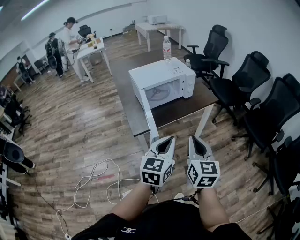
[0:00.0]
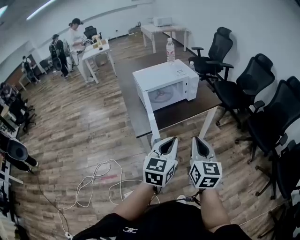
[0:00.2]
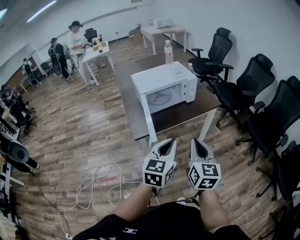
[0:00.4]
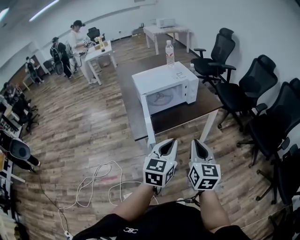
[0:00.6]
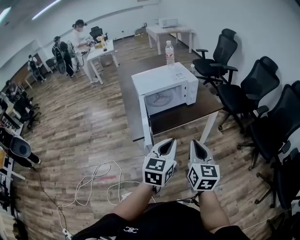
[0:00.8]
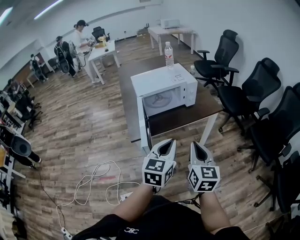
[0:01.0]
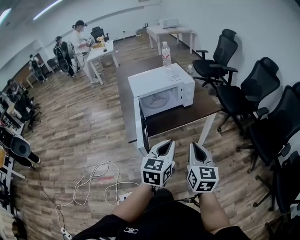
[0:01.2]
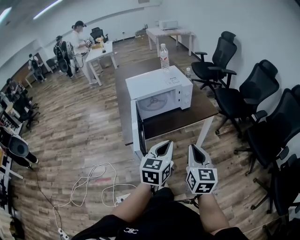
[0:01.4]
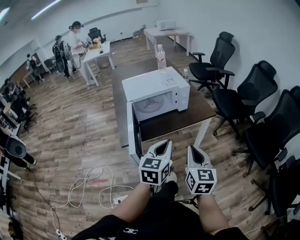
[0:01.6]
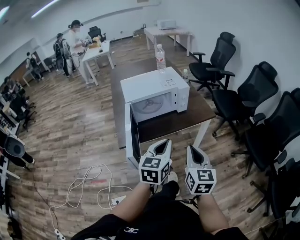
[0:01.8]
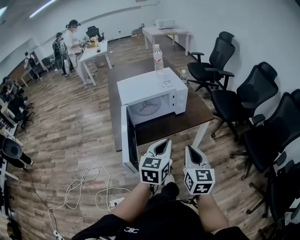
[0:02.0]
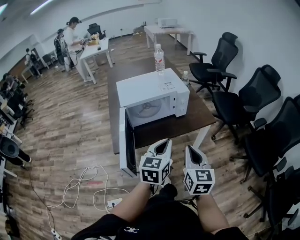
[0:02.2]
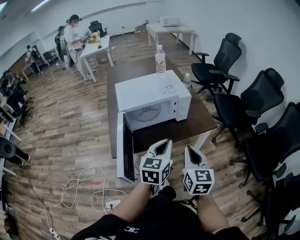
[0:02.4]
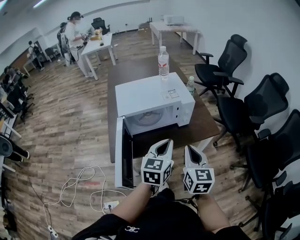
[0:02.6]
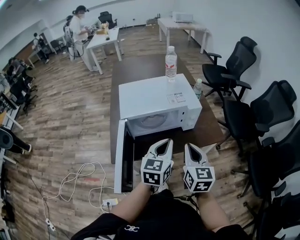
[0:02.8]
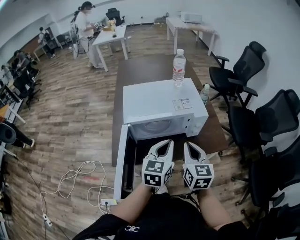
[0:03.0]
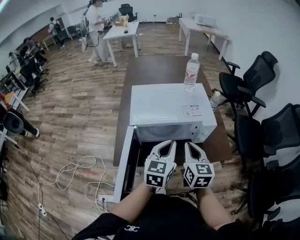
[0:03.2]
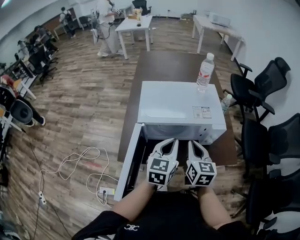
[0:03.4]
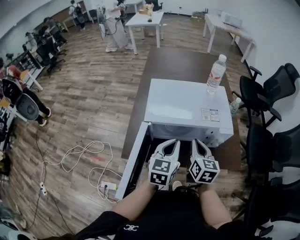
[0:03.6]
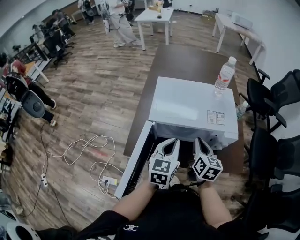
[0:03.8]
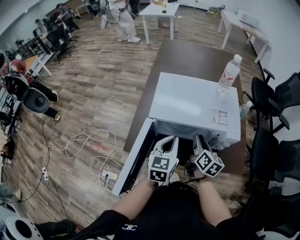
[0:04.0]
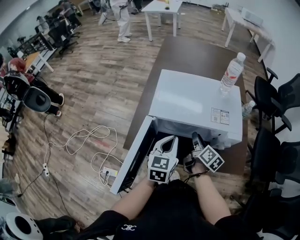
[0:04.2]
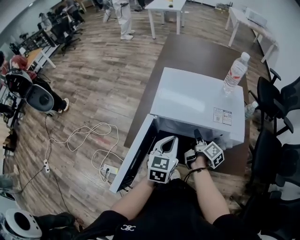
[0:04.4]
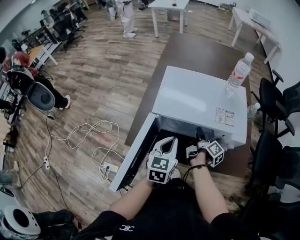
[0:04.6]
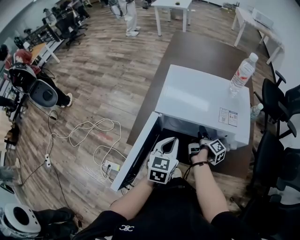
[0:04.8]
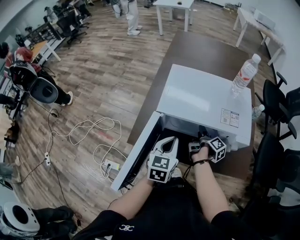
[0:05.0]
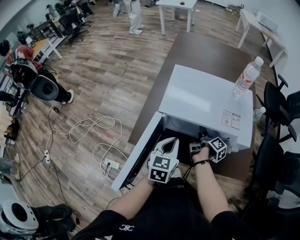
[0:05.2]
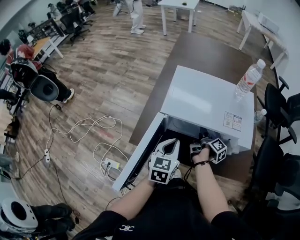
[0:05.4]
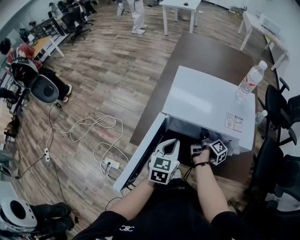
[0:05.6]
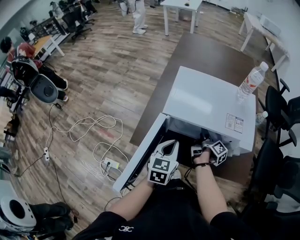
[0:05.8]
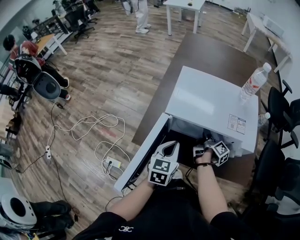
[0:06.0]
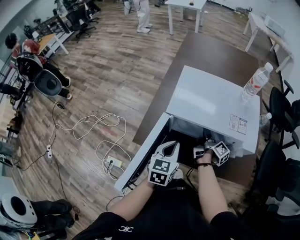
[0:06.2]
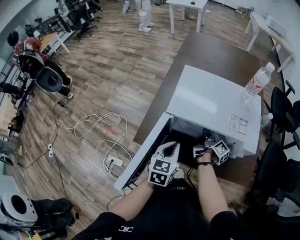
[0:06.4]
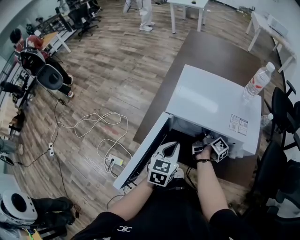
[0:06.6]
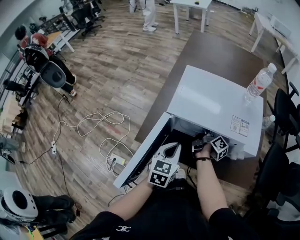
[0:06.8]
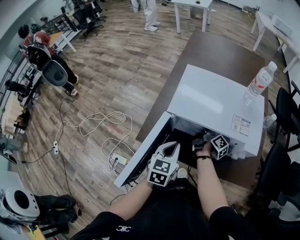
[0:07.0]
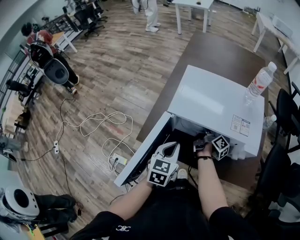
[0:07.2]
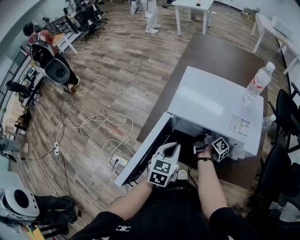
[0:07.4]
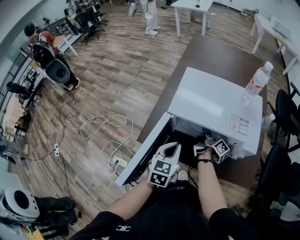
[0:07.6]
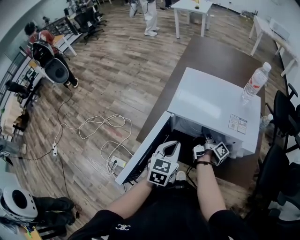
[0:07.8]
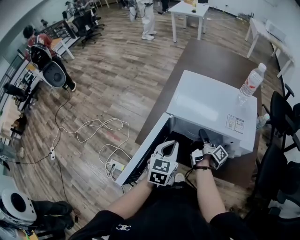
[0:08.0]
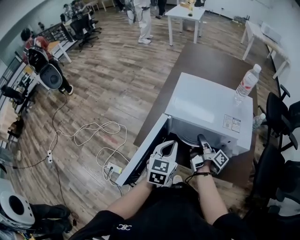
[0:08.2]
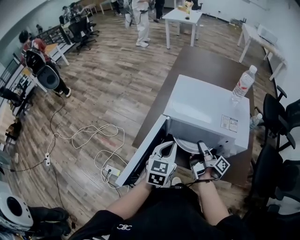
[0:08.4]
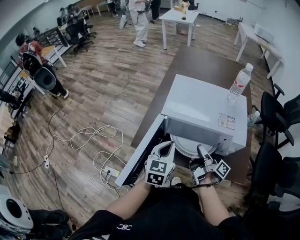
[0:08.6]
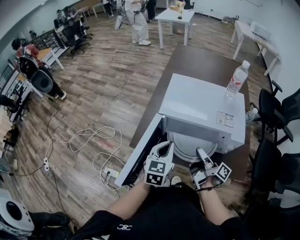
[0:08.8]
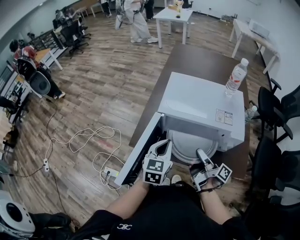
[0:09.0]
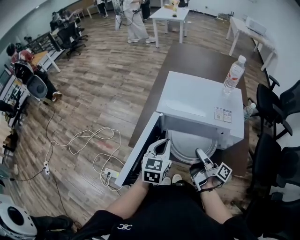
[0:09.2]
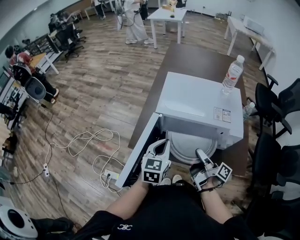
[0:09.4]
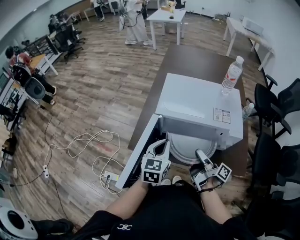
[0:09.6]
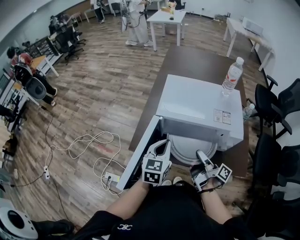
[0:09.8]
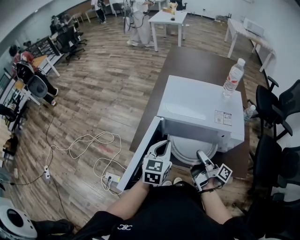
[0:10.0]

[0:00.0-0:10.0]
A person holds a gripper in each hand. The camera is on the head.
0:00.0 to 0:01.4: Both grippers move to the right and forward, some 10 cm.
0:01.4 to 0:02.8: Both grippers travel together forward, some 25 cm.
0:02.8 to 0:04.2: The left gripper shifts roughly 15 cm forward, to the left and downward, and rotates some 20 degrees. The right gripper goes roughly 25 cm forward and downward, rolls clockwise, seen from behind, by about 40 degrees, and opens.
0:04.2 to 0:05.8: The left gripper changes place by some 5 cm. The right gripper moves downward and forward, some 10 cm, turns by about 30 degrees, and opens.
0:05.8 to 0:07.2: The right gripper closes up.
0:07.2 to 0:08.6: The right gripper is displaced backward and upward by about 15 cm. The left gripper changes place by about 5 cm.
0:08.6 to 0:10.0: The grippers move only a little.

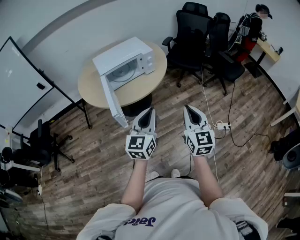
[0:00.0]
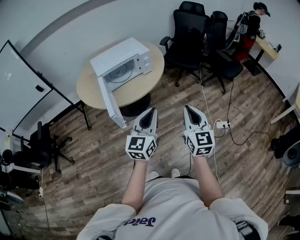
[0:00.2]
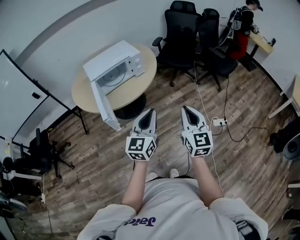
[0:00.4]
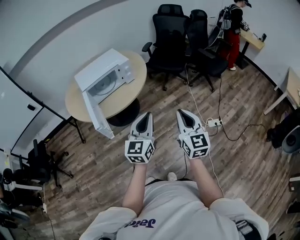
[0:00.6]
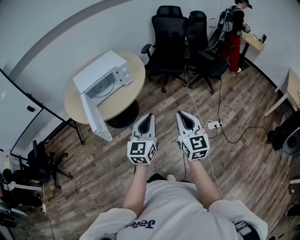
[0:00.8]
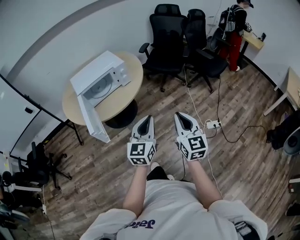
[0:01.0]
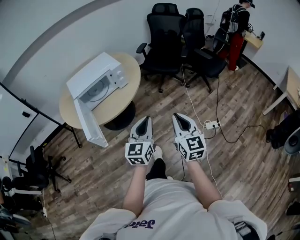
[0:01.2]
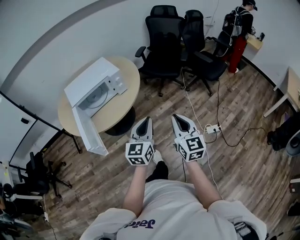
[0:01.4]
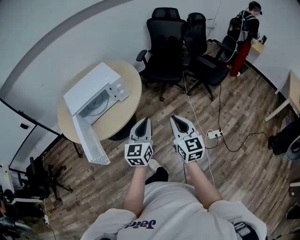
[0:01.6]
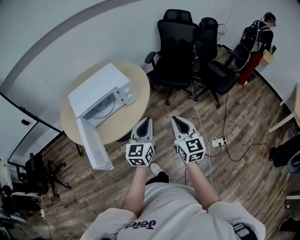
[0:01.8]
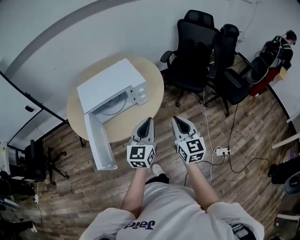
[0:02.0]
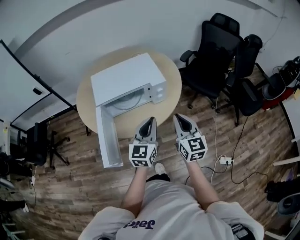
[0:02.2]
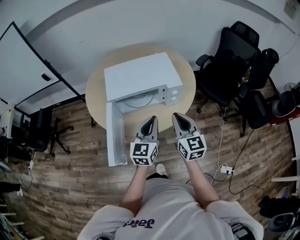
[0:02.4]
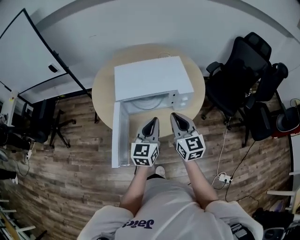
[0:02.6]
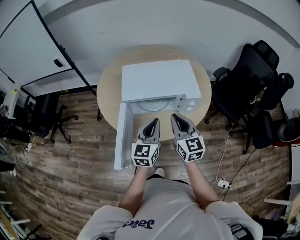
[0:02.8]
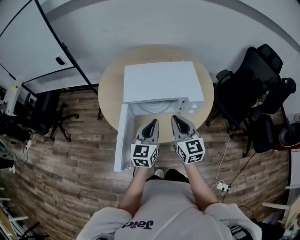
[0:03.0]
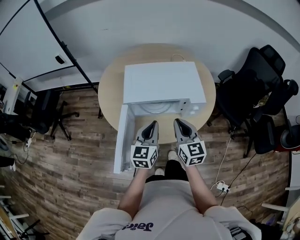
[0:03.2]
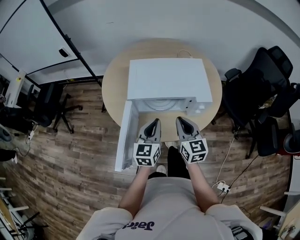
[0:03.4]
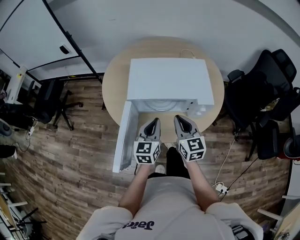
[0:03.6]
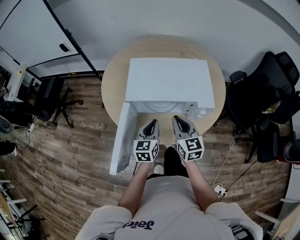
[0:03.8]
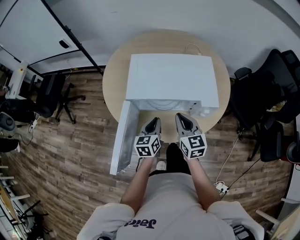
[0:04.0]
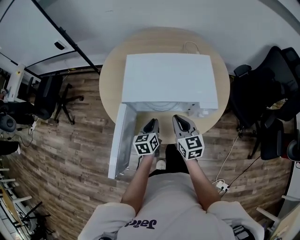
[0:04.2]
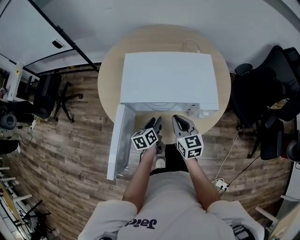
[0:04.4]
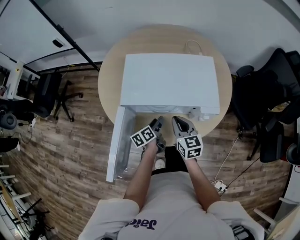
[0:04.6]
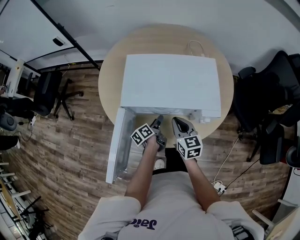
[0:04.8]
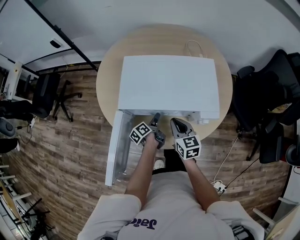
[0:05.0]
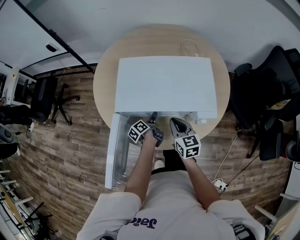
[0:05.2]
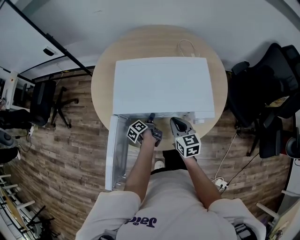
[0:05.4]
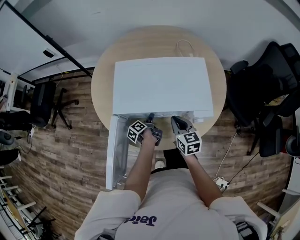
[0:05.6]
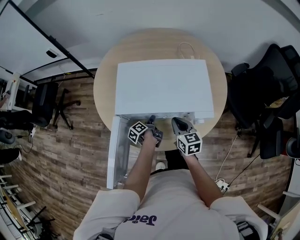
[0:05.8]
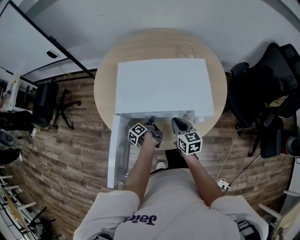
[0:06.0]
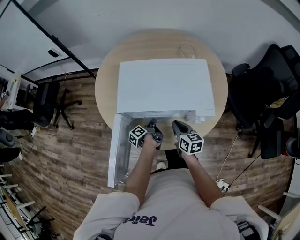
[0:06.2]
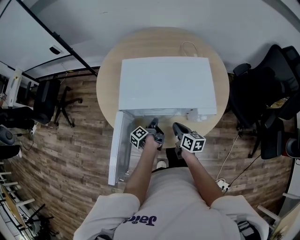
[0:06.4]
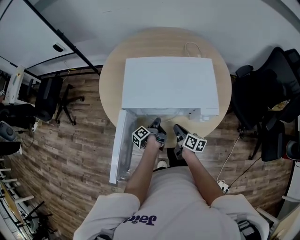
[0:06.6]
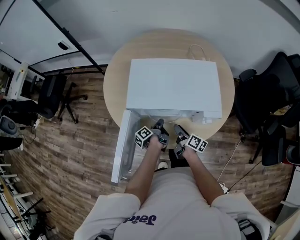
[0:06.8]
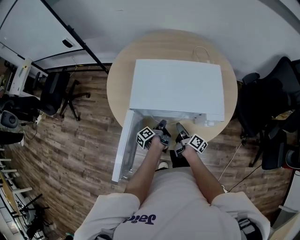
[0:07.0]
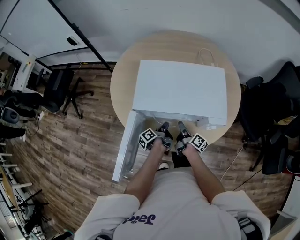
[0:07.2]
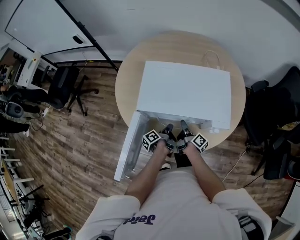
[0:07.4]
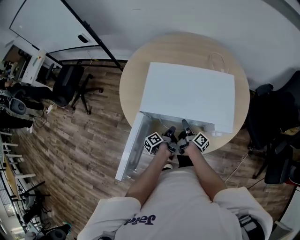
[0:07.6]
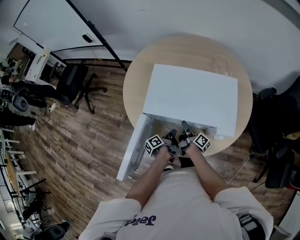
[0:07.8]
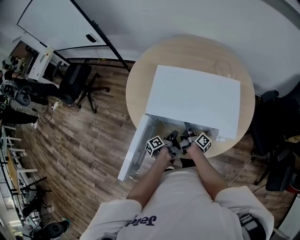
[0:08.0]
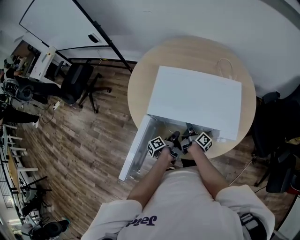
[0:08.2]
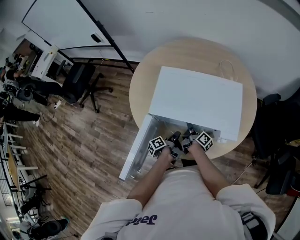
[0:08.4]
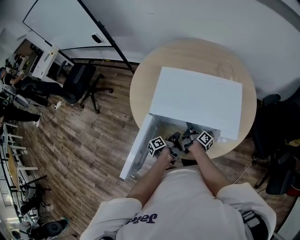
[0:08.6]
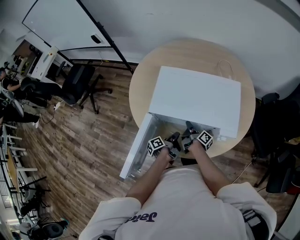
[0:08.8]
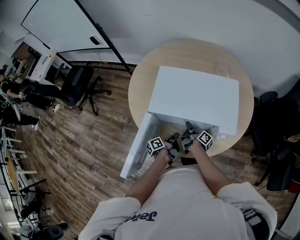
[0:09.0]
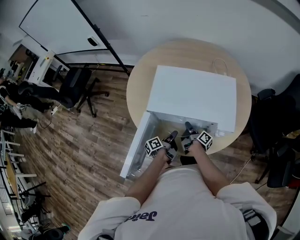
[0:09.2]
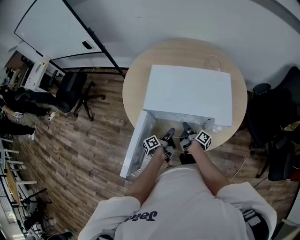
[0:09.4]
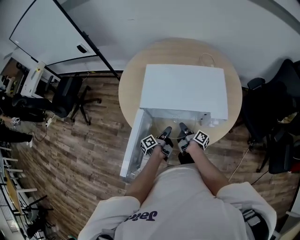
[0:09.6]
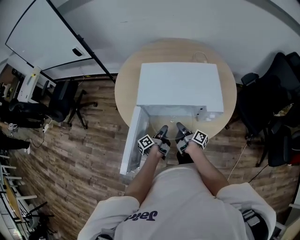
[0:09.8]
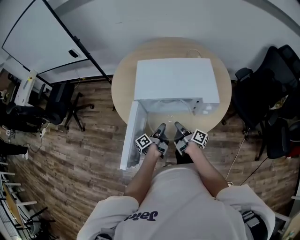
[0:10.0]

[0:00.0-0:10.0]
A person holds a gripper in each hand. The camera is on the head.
0:00.0 to 0:01.4: The right gripper moves roughly 15 cm.
0:01.4 to 0:02.8: The right gripper changes place by about 50 cm, and turns by some 40 degrees.
0:02.8 to 0:04.2: The right gripper is displaced downward by some 10 cm.
0:04.2 to 0:05.8: The right gripper shifts about 5 cm downward.
0:05.8 to 0:07.2: The right gripper moves downward, about 10 cm, rolls clockwise, seen from behind, by about 60 degrees, and opens up.
0:07.2 to 0:08.6: The right gripper shifts by about 5 cm, and closes up.
0:08.6 to 0:10.0: The right gripper ends up about 15 cm from where it was.

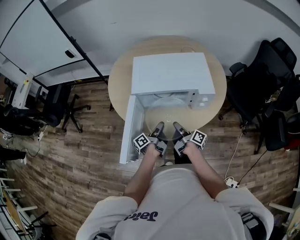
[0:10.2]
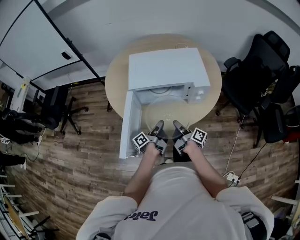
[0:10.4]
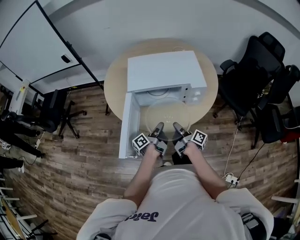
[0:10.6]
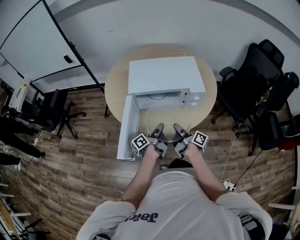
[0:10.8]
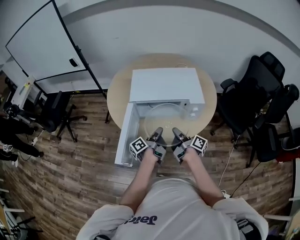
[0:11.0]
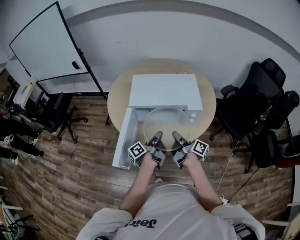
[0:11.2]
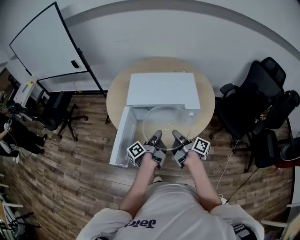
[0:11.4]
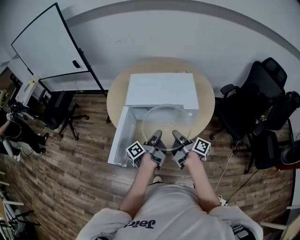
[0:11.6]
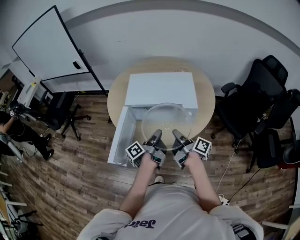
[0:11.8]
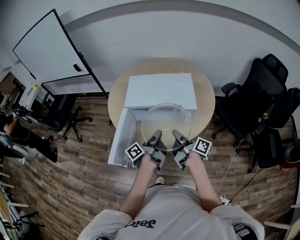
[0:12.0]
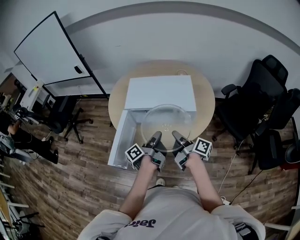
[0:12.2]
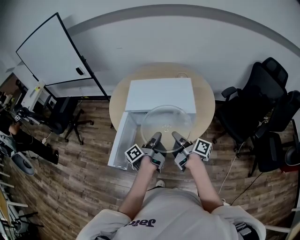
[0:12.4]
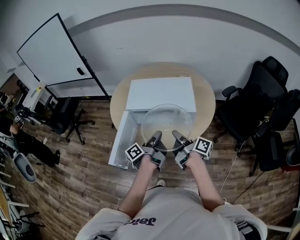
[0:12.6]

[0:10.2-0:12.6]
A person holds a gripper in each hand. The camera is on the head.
0:10.2 to 0:11.4: The right gripper travels upward by approximately 15 cm.
0:11.4 to 0:12.6: The right gripper moves upward, about 5 cm.

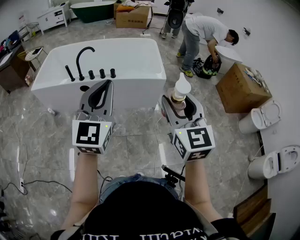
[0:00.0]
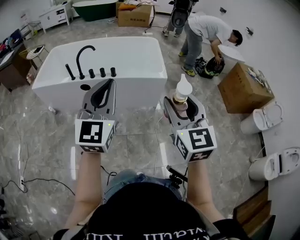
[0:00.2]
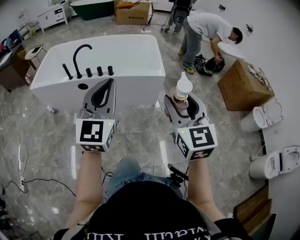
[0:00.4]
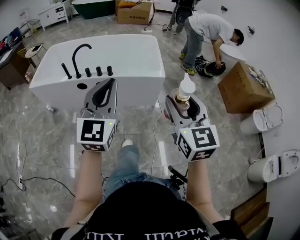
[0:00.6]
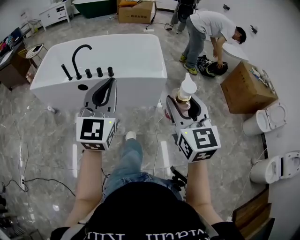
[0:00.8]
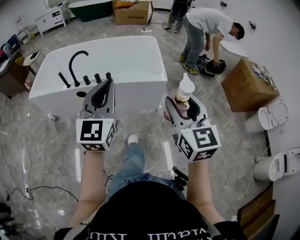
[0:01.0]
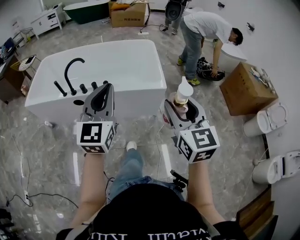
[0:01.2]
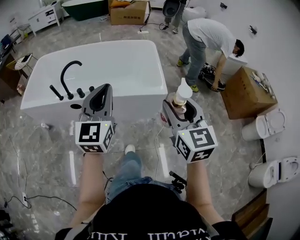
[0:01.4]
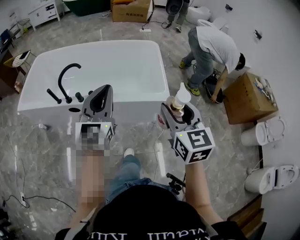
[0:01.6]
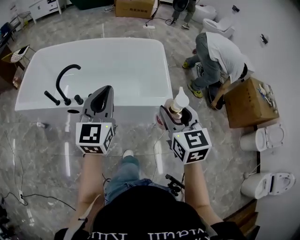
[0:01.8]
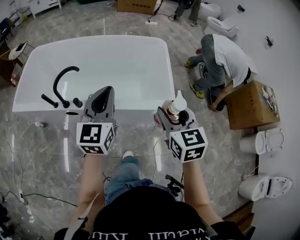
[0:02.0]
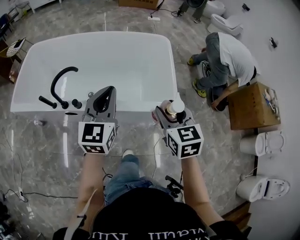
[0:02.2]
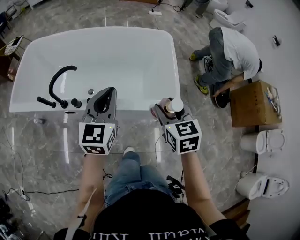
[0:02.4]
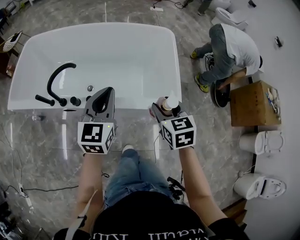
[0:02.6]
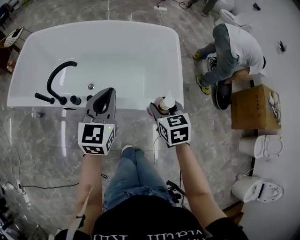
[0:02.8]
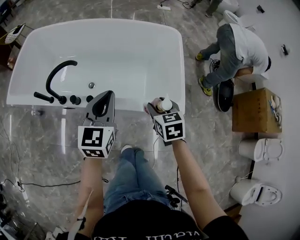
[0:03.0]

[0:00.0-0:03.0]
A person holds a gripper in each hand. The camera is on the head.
0:00.0 to 0:01.6: The two grippers go some 35 cm forward.
0:01.6 to 0:03.0: Both grippers travel together forward and downward, about 35 cm. The right gripper tips its fingers downward by roughly 30 degrees.
